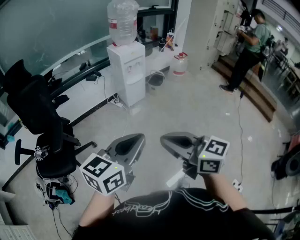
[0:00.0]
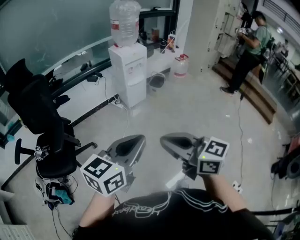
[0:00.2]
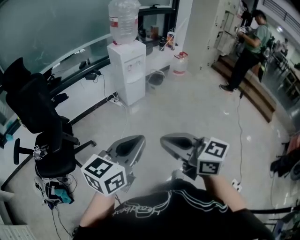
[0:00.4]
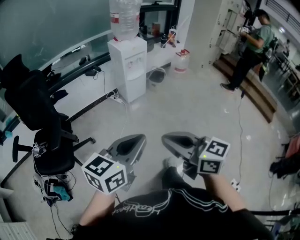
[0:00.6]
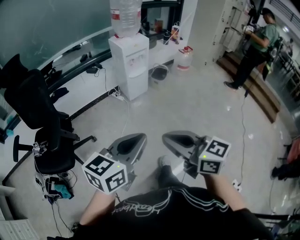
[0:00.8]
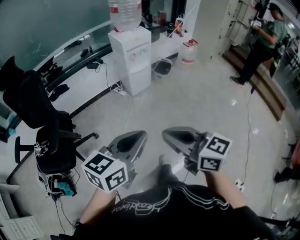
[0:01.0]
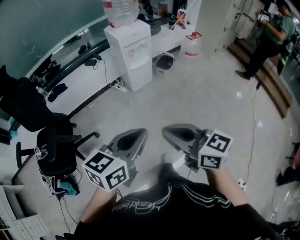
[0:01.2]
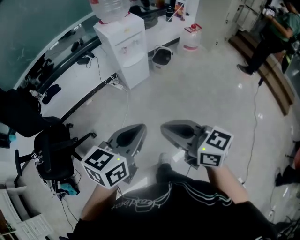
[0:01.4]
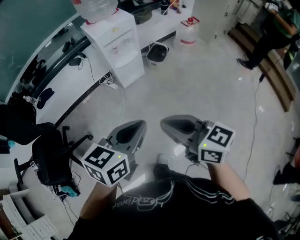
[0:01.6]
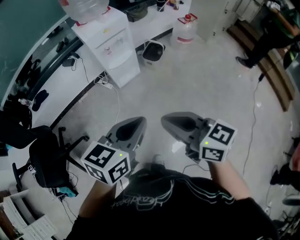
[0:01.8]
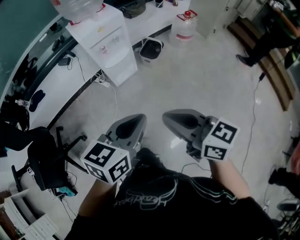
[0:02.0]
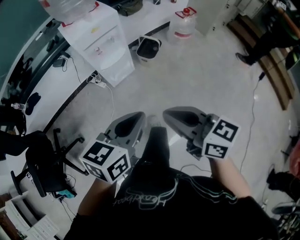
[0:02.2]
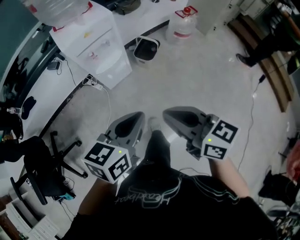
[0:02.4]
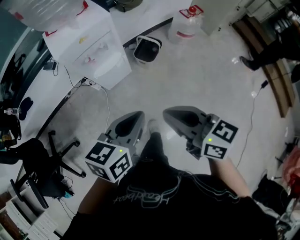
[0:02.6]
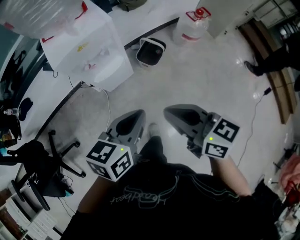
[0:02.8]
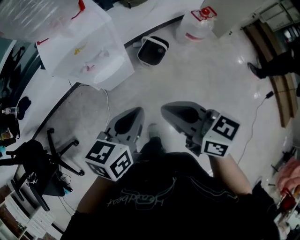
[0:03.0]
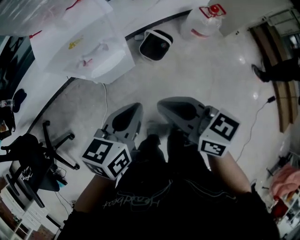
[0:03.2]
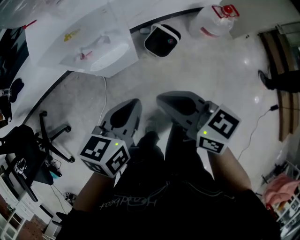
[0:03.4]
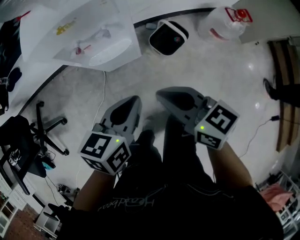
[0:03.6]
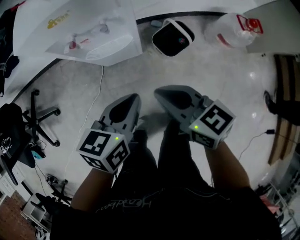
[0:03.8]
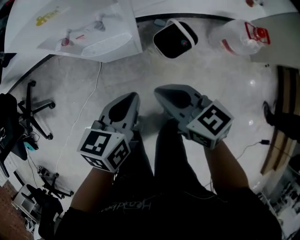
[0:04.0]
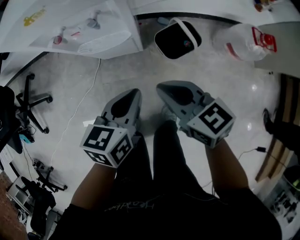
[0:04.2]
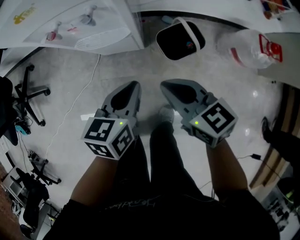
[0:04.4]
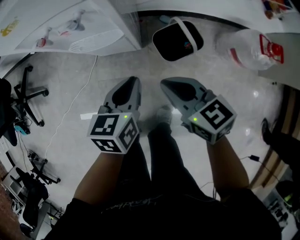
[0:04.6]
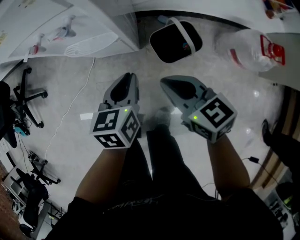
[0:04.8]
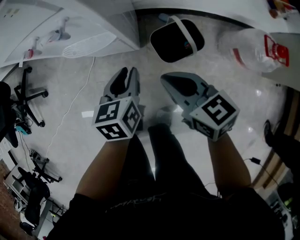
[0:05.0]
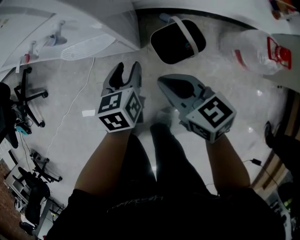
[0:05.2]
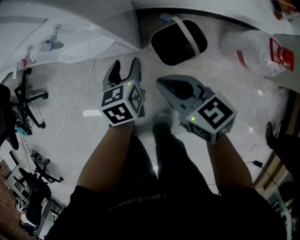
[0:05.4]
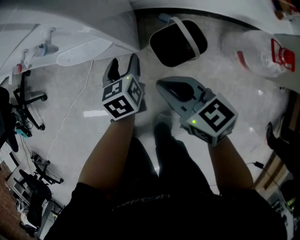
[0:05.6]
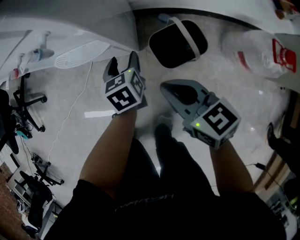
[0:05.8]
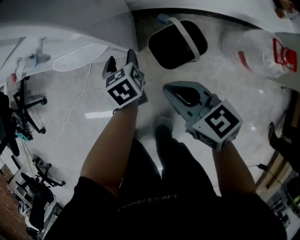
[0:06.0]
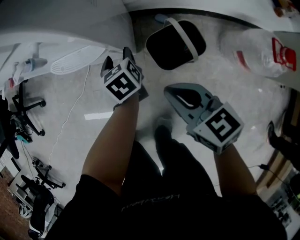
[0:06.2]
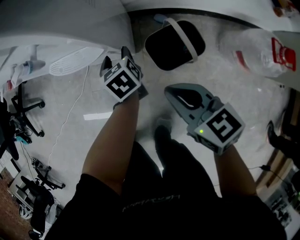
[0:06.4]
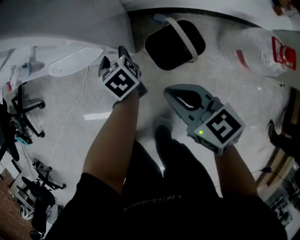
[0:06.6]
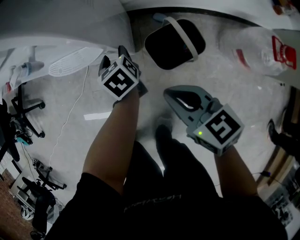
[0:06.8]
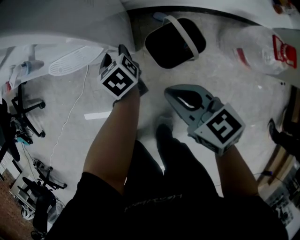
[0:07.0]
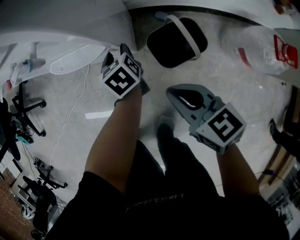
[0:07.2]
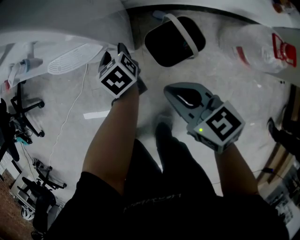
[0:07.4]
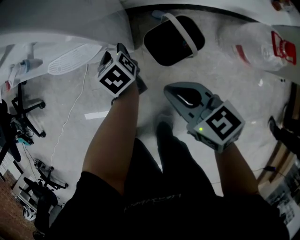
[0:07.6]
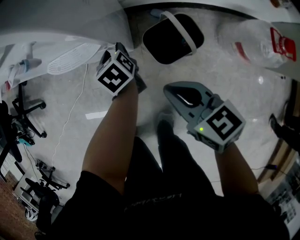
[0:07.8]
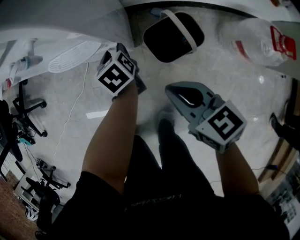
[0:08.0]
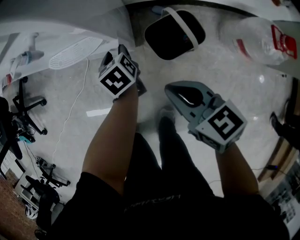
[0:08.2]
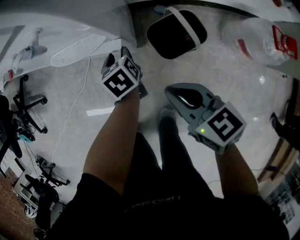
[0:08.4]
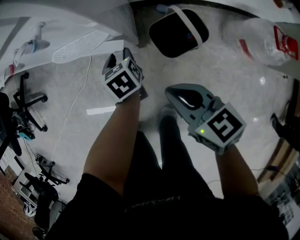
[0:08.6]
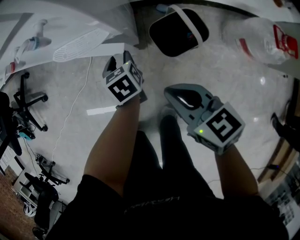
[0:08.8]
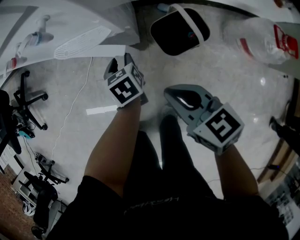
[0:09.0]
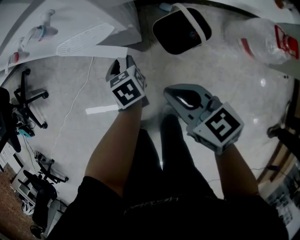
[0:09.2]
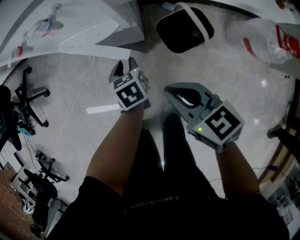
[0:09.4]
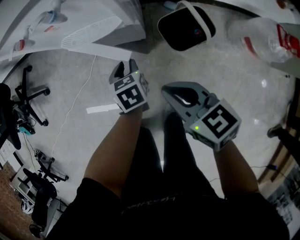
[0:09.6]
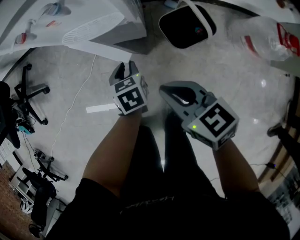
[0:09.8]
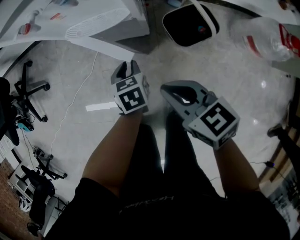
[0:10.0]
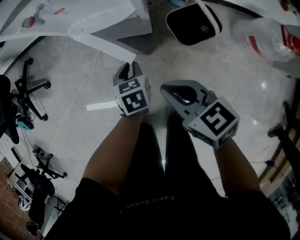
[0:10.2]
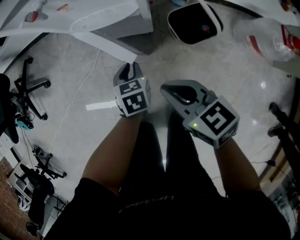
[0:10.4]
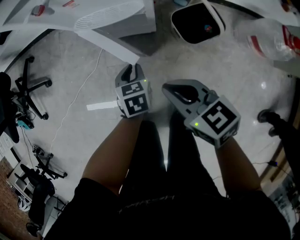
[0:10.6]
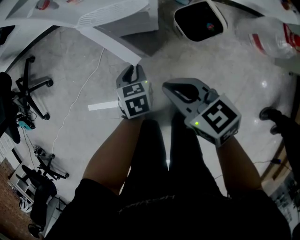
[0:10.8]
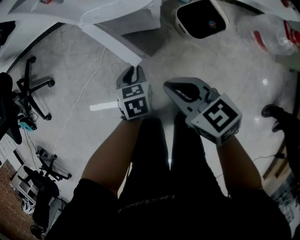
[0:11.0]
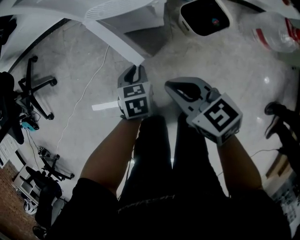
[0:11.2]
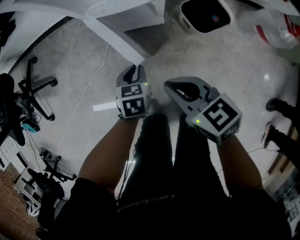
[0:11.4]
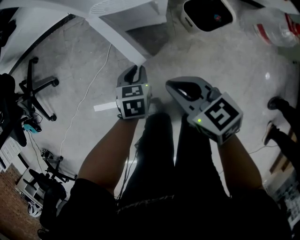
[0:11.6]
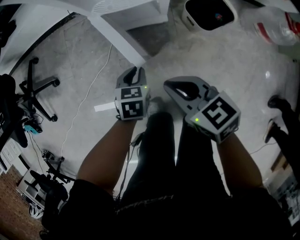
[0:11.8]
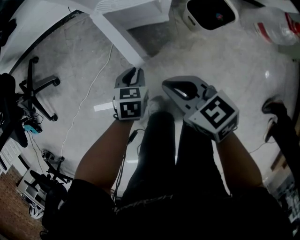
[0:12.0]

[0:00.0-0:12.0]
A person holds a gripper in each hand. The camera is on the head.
0:00.0 to 0:01.6: Both grippers travel together forward and to the right, about 35 cm.
0:01.6 to 0:03.0: The two grippers travel together, forward, approximately 40 cm.
0:03.0 to 0:04.4: Both grippers move downward, approximately 25 cm. The left gripper changes its angle by approximately 40 degrees. Meanwhile the right gripper changes its angle by approximately 30 degrees.
0:04.4 to 0:06.0: The left gripper is displaced downward and forward by roughly 25 cm, changes its angle by roughly 30 degrees, and opens its fingers, while the right gripper goes roughly 10 cm downward and to the right.
0:06.0 to 0:07.6: There are only small adjustments of the grippers.
0:07.6 to 0:09.0: The right gripper is displaced to the left by approximately 5 cm. The left gripper is displaced to the left and backward by approximately 10 cm.
0:09.0 to 0:10.4: The right gripper goes approximately 10 cm to the left. The left gripper travels to the left and backward by roughly 10 cm, and closes its fingers.
0:10.4 to 0:12.0: Both grippers move to the left, some 10 cm. The left gripper turns by some 20 degrees.

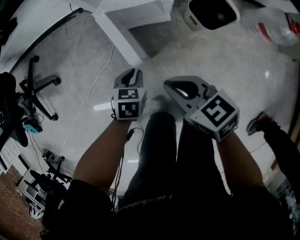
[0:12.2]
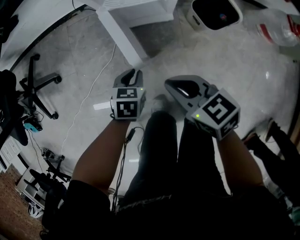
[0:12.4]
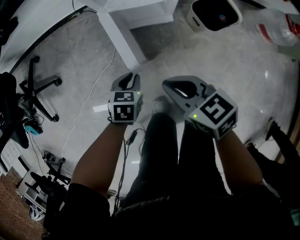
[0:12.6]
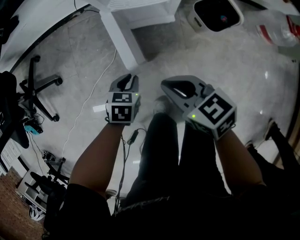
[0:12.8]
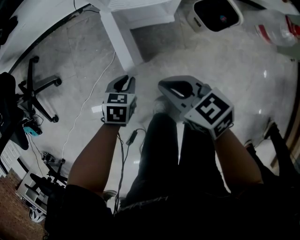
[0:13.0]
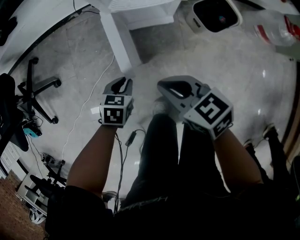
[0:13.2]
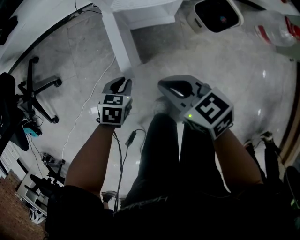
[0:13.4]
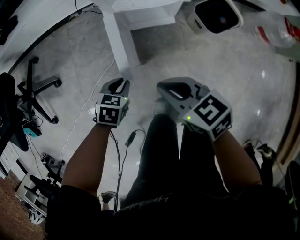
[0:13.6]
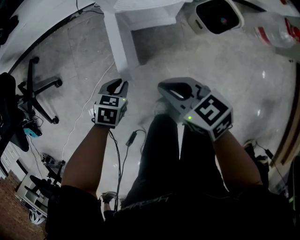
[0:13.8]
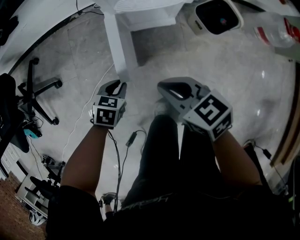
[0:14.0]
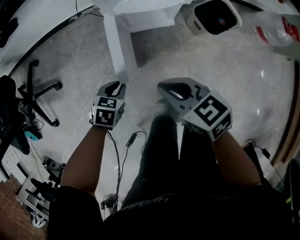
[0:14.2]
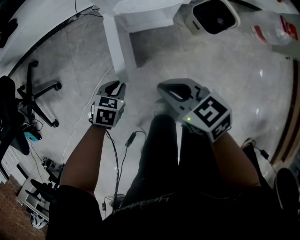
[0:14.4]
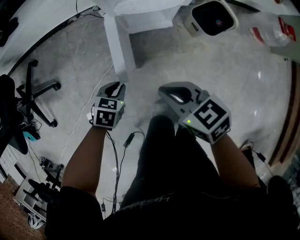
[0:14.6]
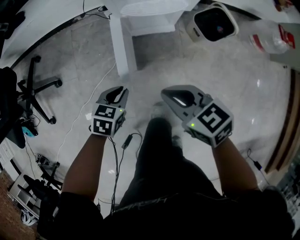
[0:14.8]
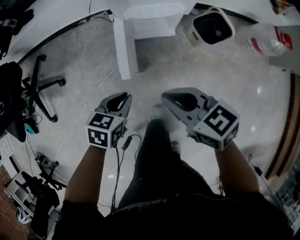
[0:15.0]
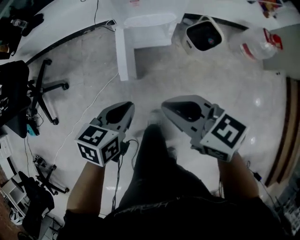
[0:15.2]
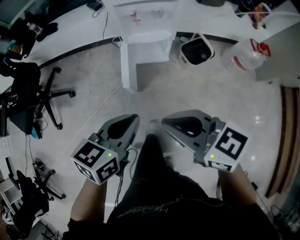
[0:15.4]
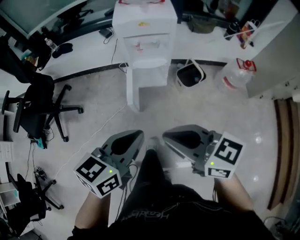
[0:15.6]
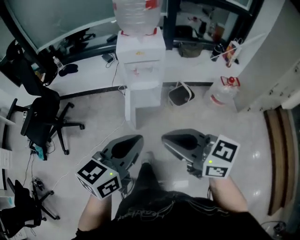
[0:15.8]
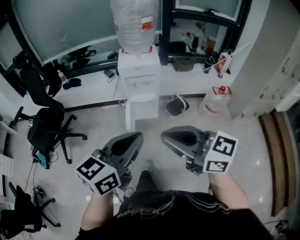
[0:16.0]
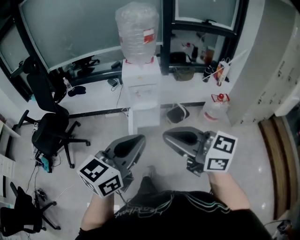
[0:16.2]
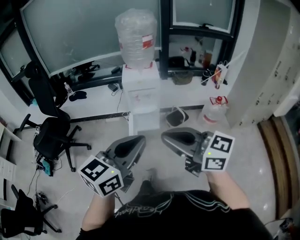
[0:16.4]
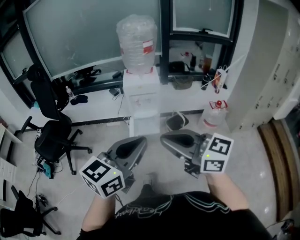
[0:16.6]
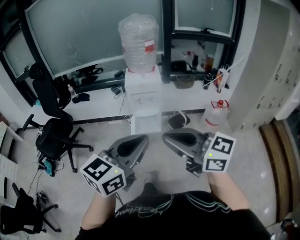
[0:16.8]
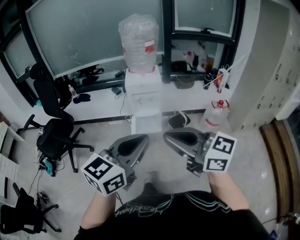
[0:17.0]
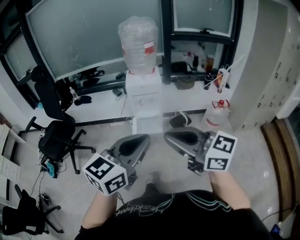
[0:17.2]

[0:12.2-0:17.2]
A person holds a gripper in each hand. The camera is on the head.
0:12.2 to 0:13.8: The left gripper is displaced to the left by about 10 cm; the right gripper shifts approximately 5 cm to the left.
0:13.8 to 0:15.6: The grippers both shift upward and backward by some 50 cm. The right gripper rotates approximately 20 degrees. The left gripper tilts its fingers approximately 50 degrees upward.
0:15.6 to 0:17.2: The grippers both shift upward and backward by about 30 cm. The left gripper swivels some 20 degrees, while the right gripper changes its angle by about 20 degrees.

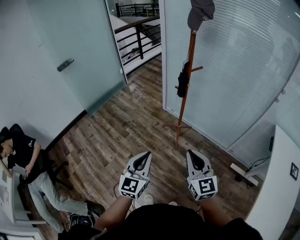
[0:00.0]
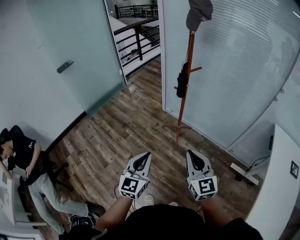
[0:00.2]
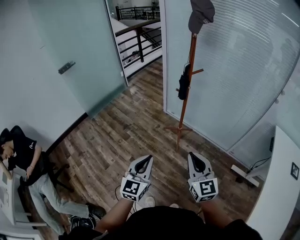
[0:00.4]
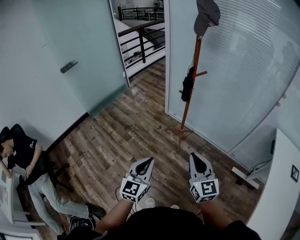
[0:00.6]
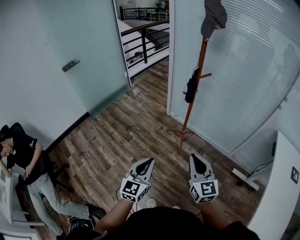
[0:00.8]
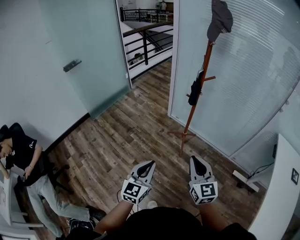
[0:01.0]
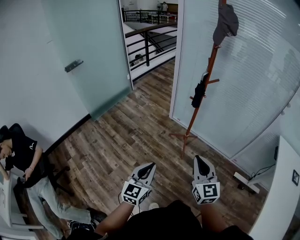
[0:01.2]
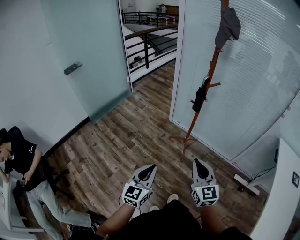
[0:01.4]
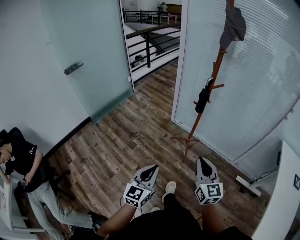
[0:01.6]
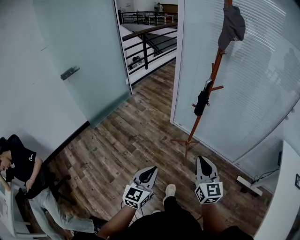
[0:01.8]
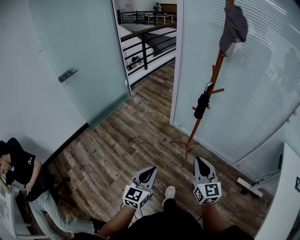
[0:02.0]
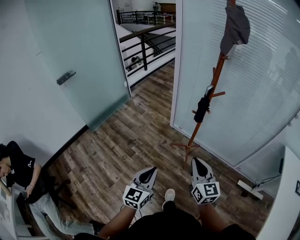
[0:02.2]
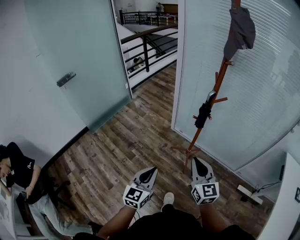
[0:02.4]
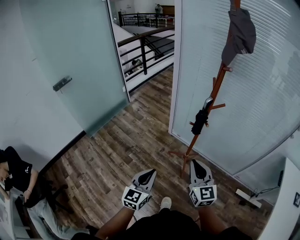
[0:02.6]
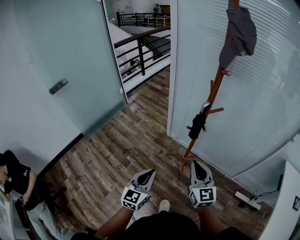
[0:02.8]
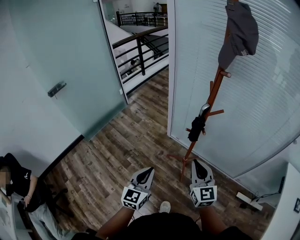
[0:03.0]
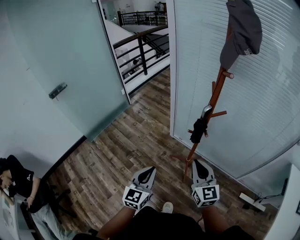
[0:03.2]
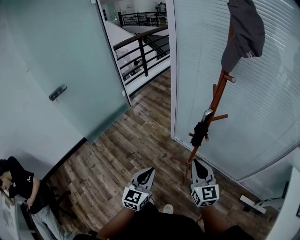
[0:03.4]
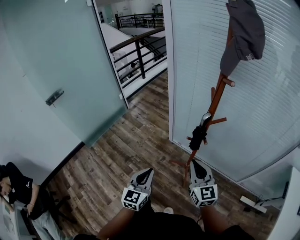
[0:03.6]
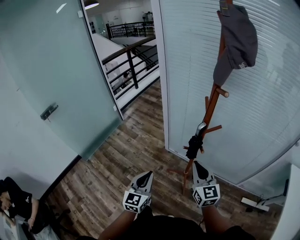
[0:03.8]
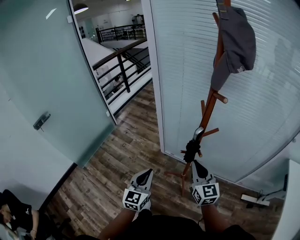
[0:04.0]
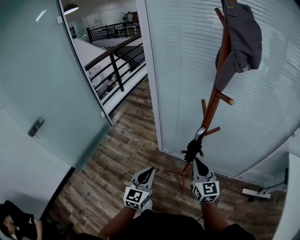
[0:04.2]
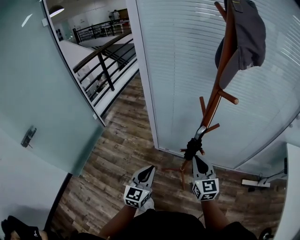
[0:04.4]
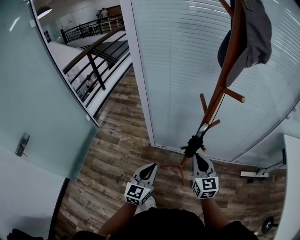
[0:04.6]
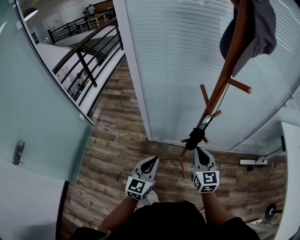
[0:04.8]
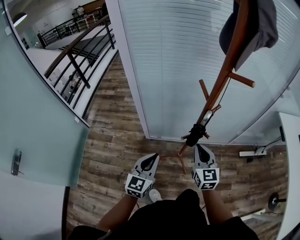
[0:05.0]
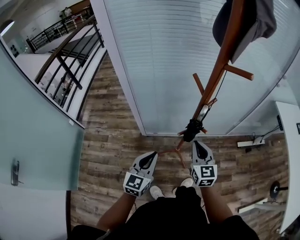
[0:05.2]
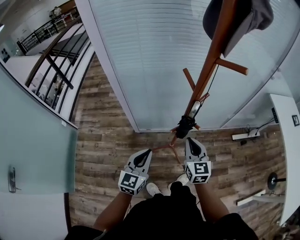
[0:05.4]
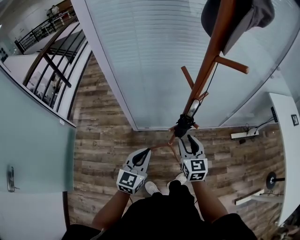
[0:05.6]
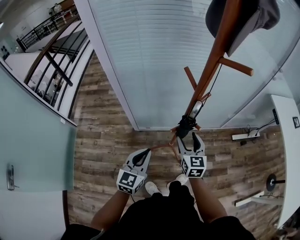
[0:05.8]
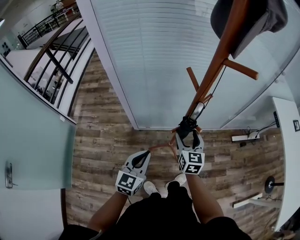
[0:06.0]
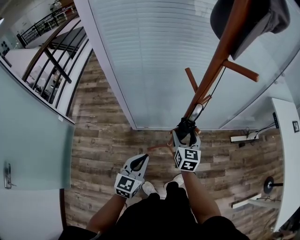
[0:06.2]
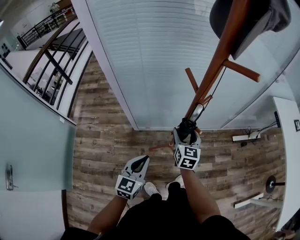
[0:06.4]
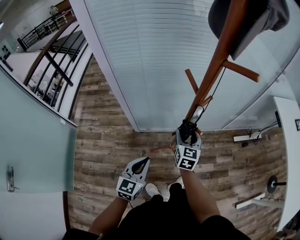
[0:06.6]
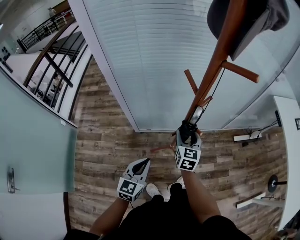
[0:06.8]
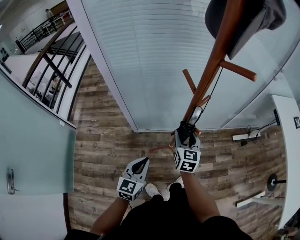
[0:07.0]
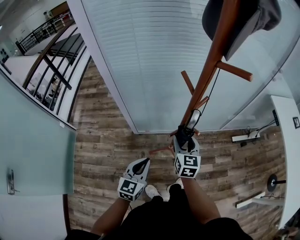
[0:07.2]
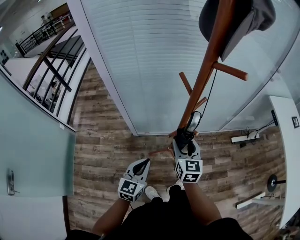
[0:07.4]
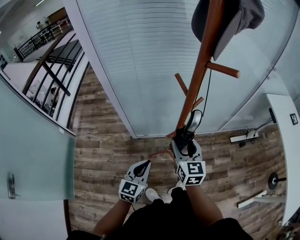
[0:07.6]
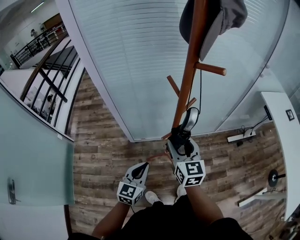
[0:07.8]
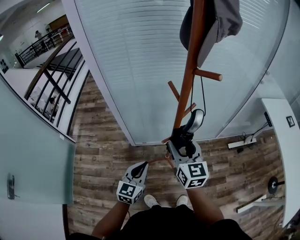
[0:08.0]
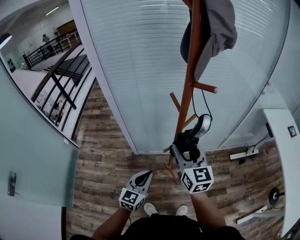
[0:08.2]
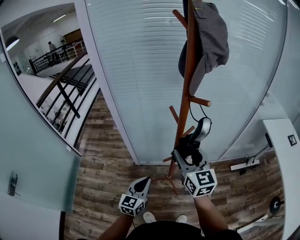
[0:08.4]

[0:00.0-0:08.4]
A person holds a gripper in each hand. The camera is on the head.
0:00.0 to 0:01.4: The grippers both shift to the left by some 10 cm.
0:01.4 to 0:02.8: The grippers both shift forward by about 25 cm.
0:02.8 to 0:04.2: Both grippers travel together forward, approximately 20 cm.
0:04.2 to 0:05.6: The left gripper ends up roughly 10 cm from where it was, and changes its angle by some 30 degrees, while the right gripper travels downward by approximately 10 cm, rotates about 30 degrees, and opens its fingers.
0:05.6 to 0:07.0: The right gripper heads forward, covering about 5 cm.
0:07.0 to 0:08.4: The left gripper ends up approximately 5 cm from where it was; the right gripper is displaced upward by roughly 20 cm, and rotates approximately 30 degrees.
